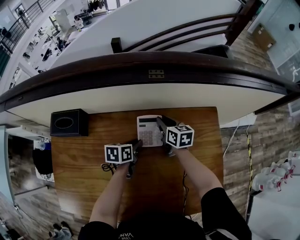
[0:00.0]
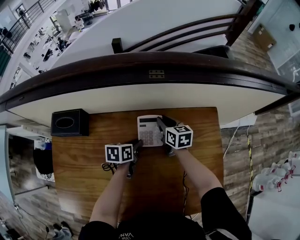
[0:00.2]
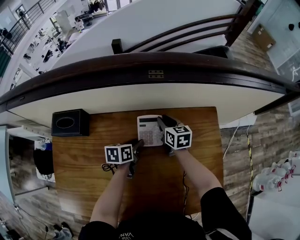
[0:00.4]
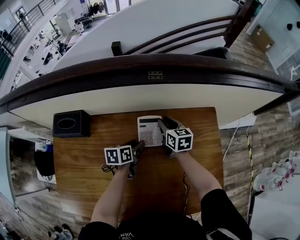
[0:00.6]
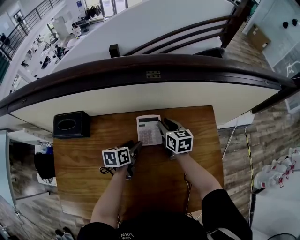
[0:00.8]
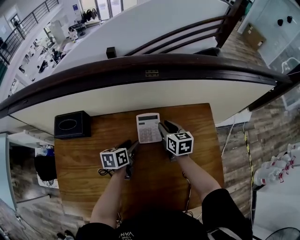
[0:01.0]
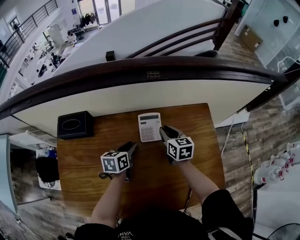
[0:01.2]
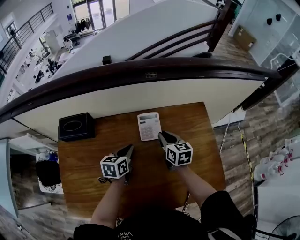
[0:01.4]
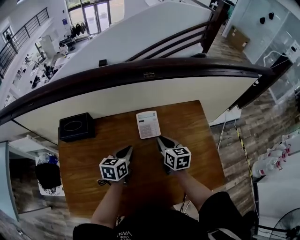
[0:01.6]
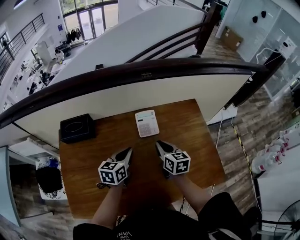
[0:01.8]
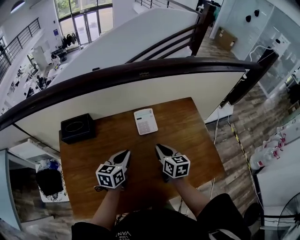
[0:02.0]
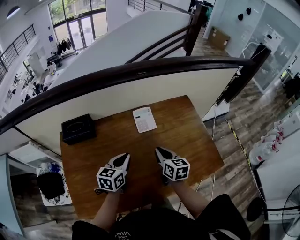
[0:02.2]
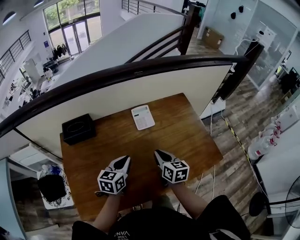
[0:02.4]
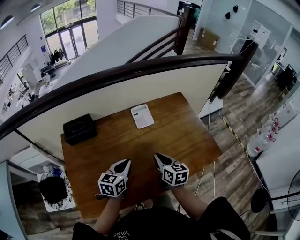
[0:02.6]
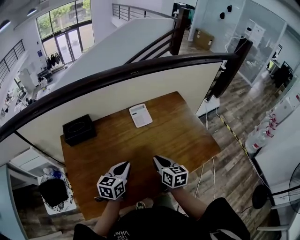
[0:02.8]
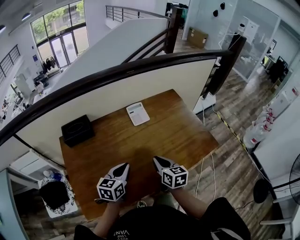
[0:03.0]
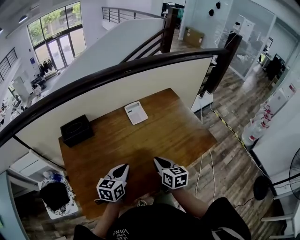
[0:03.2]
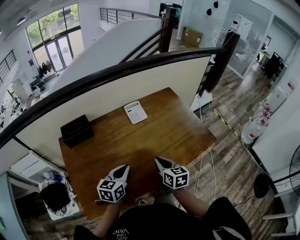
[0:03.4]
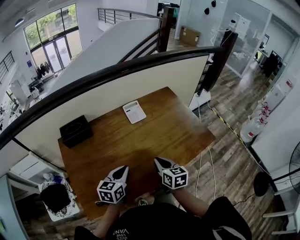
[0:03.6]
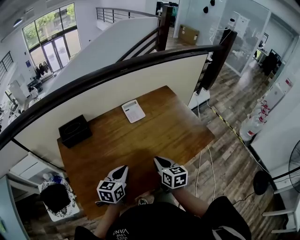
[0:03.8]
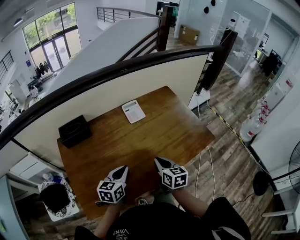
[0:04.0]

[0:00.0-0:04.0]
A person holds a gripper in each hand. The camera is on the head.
0.0 to 1.4 s: The right gripper shifts approximately 15 cm backward and upward, while the left gripper goes about 10 cm upward and backward, and opens, then closes again.
1.4 to 2.6 s: Both grippers travel together backward, roughly 20 cm. The left gripper turns by roughly 20 degrees.
2.6 to 4.0 s: Both grippers move backward, about 10 cm.

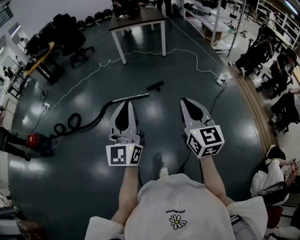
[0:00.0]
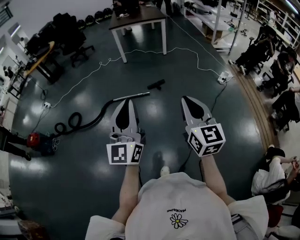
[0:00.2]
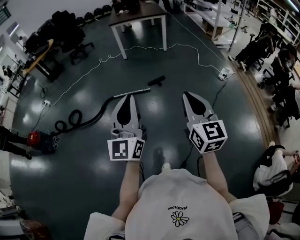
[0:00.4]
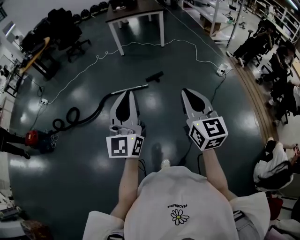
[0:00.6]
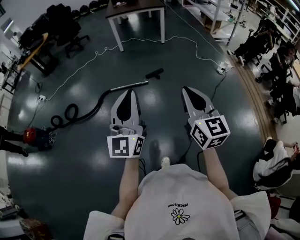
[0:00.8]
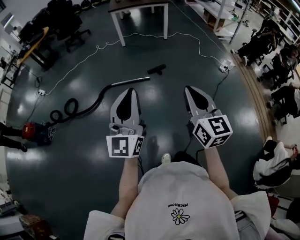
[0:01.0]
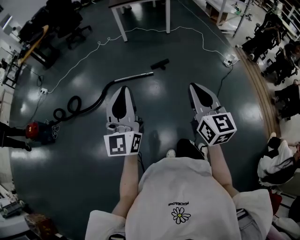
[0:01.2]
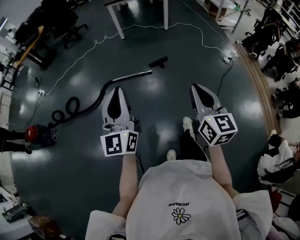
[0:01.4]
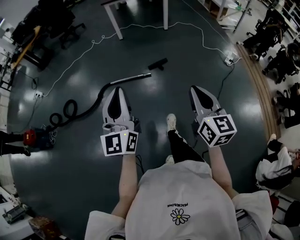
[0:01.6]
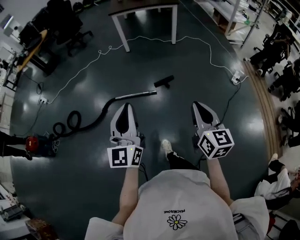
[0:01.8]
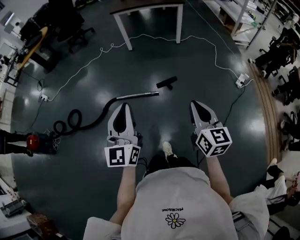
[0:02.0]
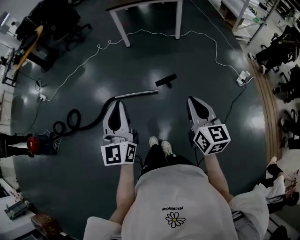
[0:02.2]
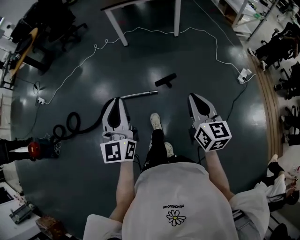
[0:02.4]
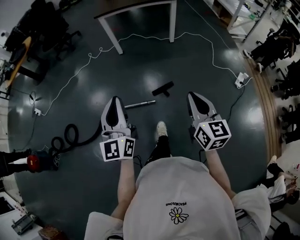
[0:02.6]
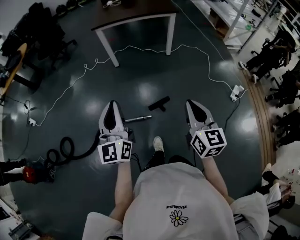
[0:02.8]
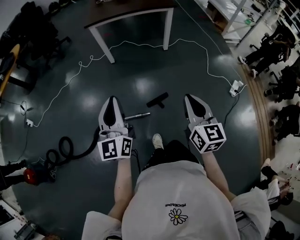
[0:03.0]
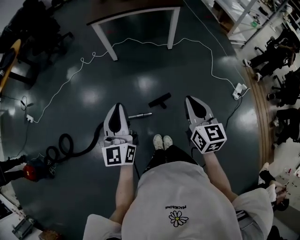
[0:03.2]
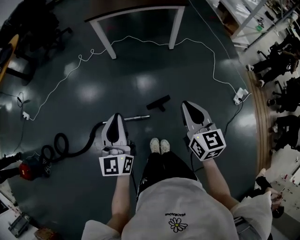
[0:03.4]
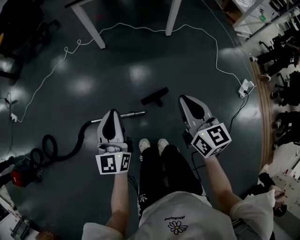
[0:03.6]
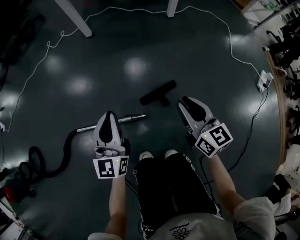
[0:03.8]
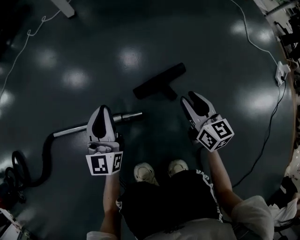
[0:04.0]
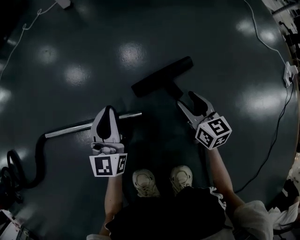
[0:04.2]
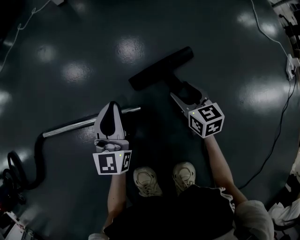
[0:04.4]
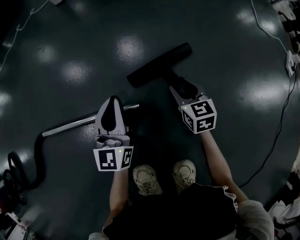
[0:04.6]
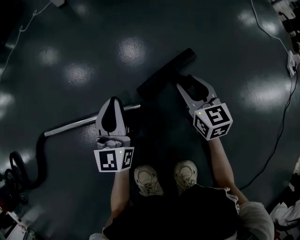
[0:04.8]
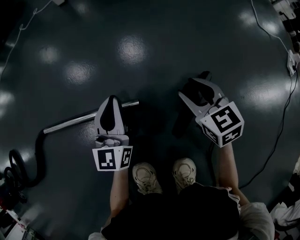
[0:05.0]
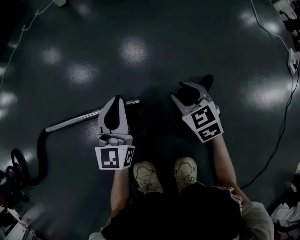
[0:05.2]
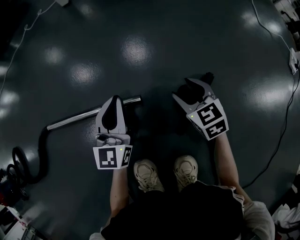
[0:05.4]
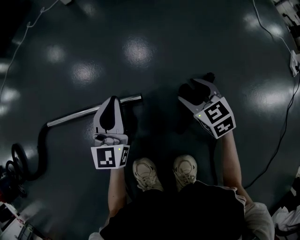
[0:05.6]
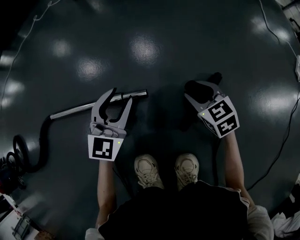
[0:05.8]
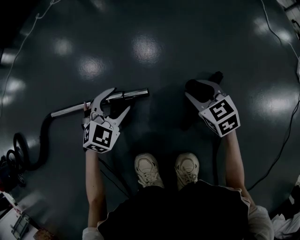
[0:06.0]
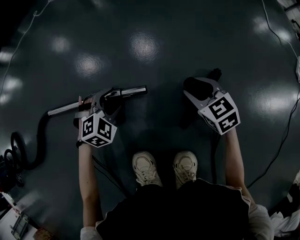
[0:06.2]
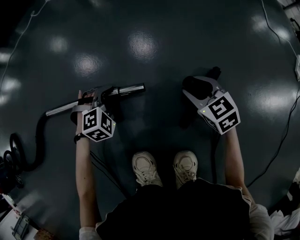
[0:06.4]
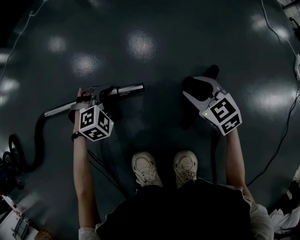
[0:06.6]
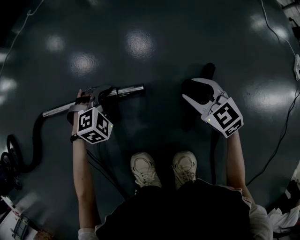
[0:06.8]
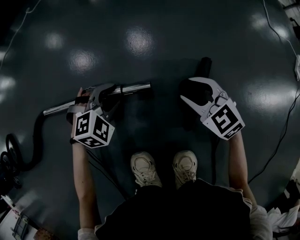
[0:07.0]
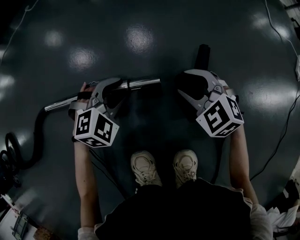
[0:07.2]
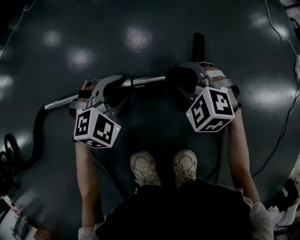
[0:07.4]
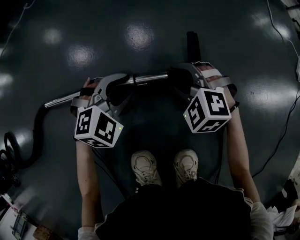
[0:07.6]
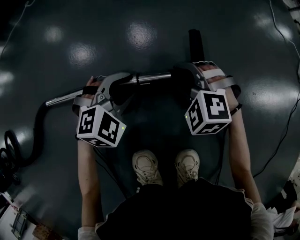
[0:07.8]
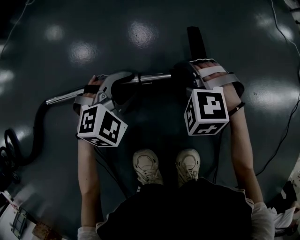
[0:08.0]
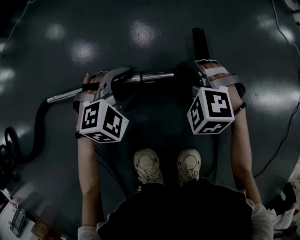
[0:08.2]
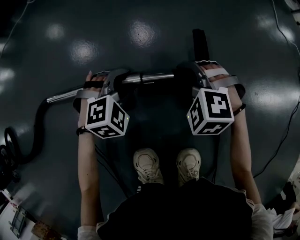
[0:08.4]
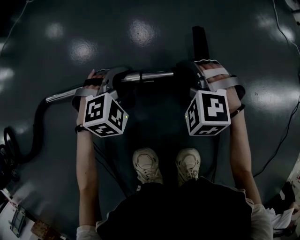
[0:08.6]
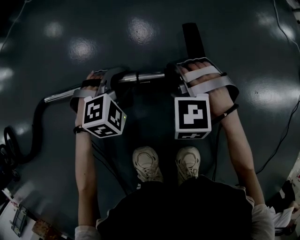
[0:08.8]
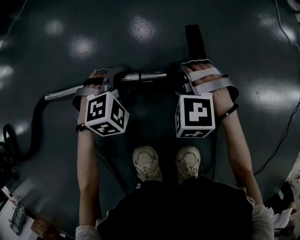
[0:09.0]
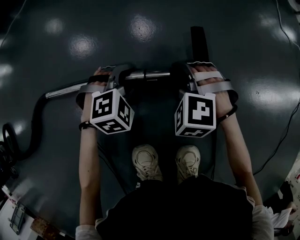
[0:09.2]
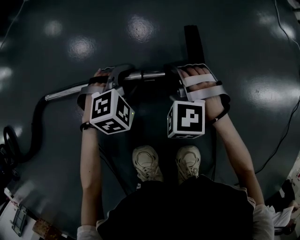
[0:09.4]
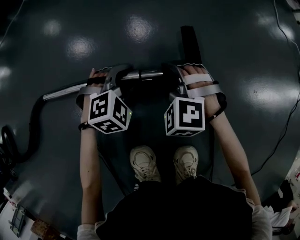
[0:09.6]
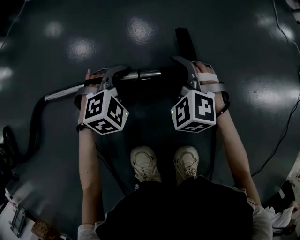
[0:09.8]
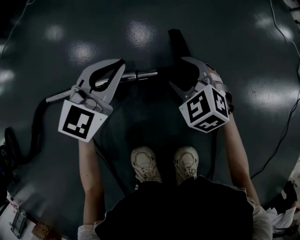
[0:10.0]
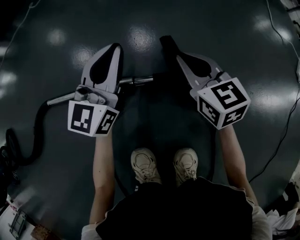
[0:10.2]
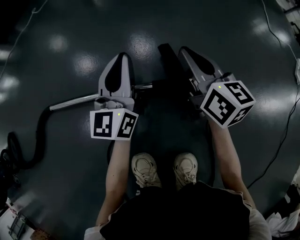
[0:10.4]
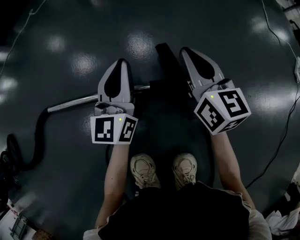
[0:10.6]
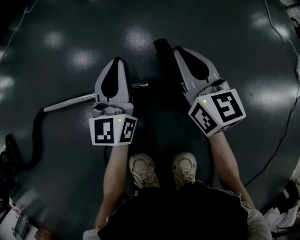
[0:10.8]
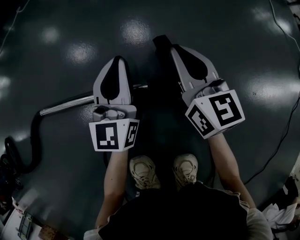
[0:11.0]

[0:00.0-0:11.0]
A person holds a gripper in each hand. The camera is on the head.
0.0 to 1.6 s: The left gripper is displaced forward, downward and to the left by roughly 20 cm. Meanwhile the right gripper moves forward and downward, about 20 cm.
1.6 to 3.2 s: The pair of grippers is taken forward, about 60 cm.
3.2 to 4.8 s: The grippers both shift downward by about 90 cm. The right gripper opens its fingers.
4.8 to 6.2 s: The right gripper goes some 5 cm backward, and changes its angle by approximately 30 degrees; the left gripper moves downward, some 15 cm, angles its fingers downward, by about 60 degrees, and opens its fingers.
6.2 to 7.8 s: The right gripper shifts approximately 5 cm to the left, and rolls counterclockwise, seen from behind, by about 50 degrees; the left gripper moves to the right and upward, approximately 10 cm, and closes up.
7.8 to 9.4 s: The left gripper heads downward, covering approximately 5 cm.
9.4 to 11.0 s: The left gripper shifts approximately 15 cm upward and forward, tips its fingers upward by approximately 60 degrees, and closes its fingers. Meanwhile the right gripper heads upward, forward and to the right, covering roughly 15 cm, rolls clockwise, seen from behind, by about 80 degrees, and closes up.

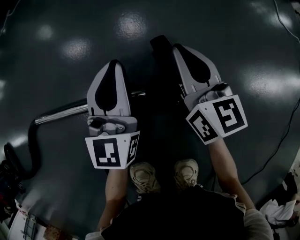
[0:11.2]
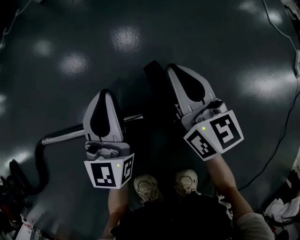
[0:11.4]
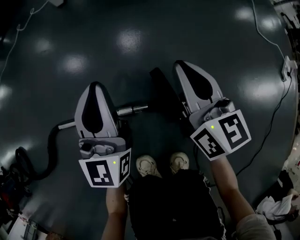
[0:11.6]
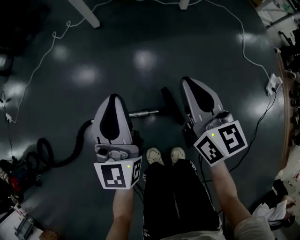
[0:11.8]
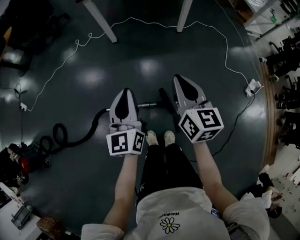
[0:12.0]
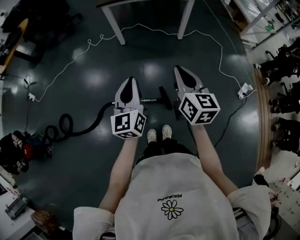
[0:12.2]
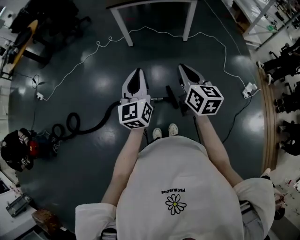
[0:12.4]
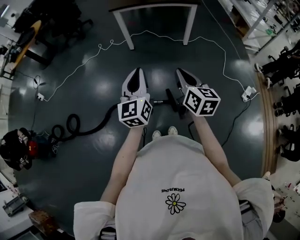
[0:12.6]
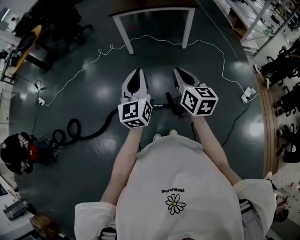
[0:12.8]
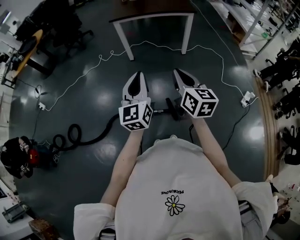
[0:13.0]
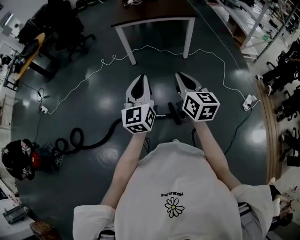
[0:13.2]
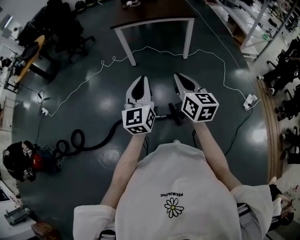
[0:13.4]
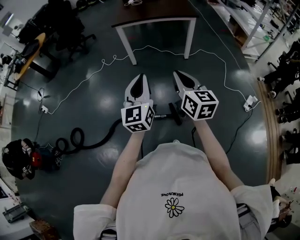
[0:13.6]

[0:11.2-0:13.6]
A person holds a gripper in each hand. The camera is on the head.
11.2 to 12.4 s: Both grippers travel together upward, some 90 cm.
12.4 to 13.6 s: The grippers make only small movements.

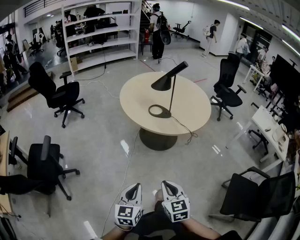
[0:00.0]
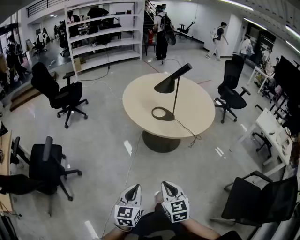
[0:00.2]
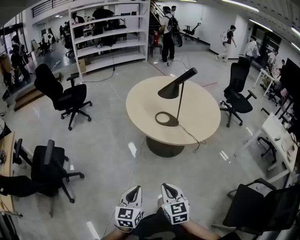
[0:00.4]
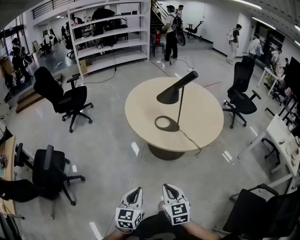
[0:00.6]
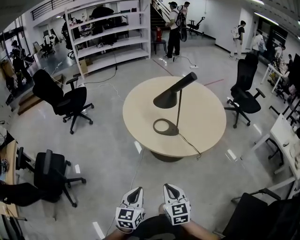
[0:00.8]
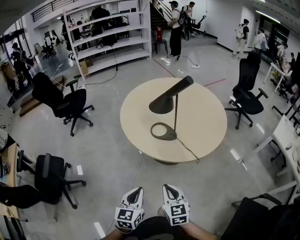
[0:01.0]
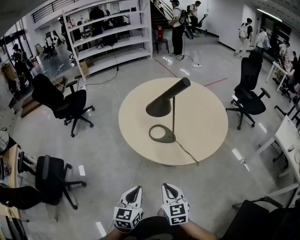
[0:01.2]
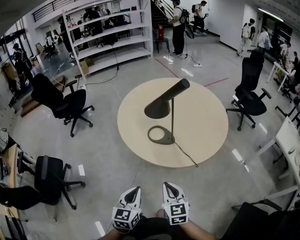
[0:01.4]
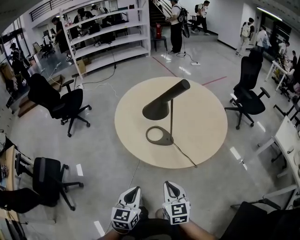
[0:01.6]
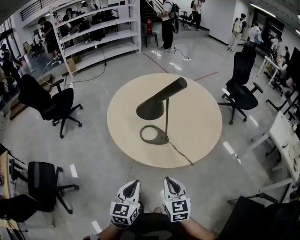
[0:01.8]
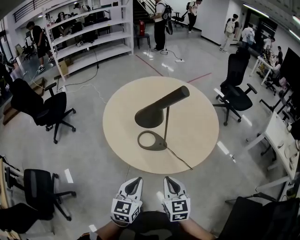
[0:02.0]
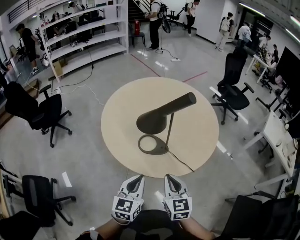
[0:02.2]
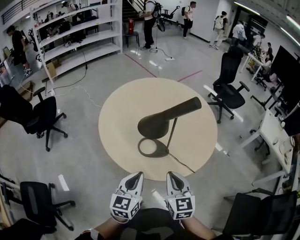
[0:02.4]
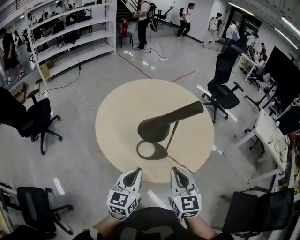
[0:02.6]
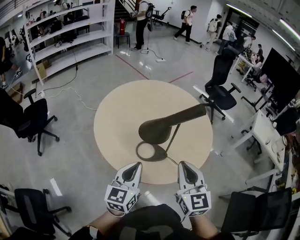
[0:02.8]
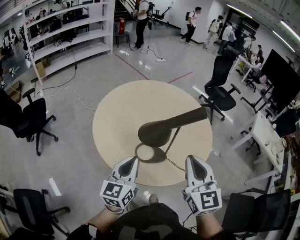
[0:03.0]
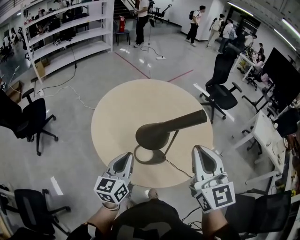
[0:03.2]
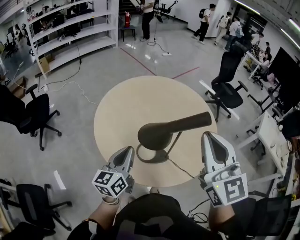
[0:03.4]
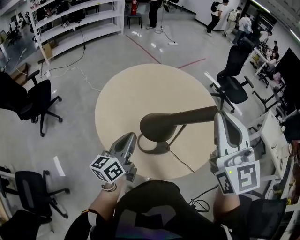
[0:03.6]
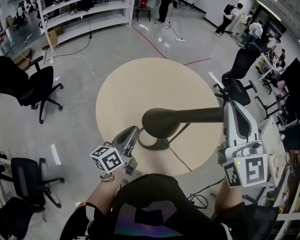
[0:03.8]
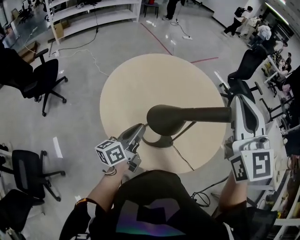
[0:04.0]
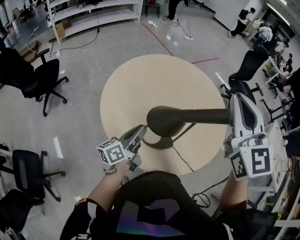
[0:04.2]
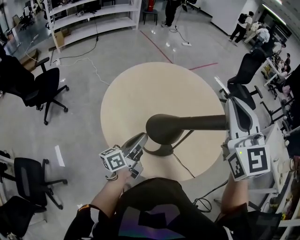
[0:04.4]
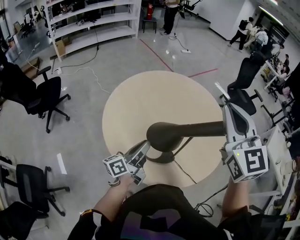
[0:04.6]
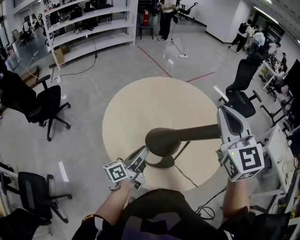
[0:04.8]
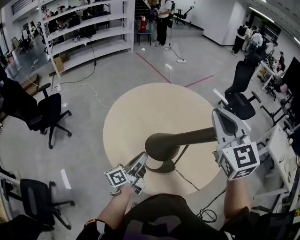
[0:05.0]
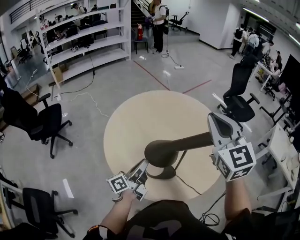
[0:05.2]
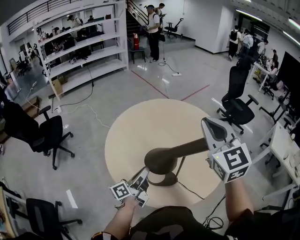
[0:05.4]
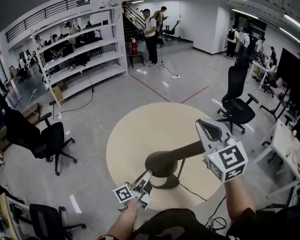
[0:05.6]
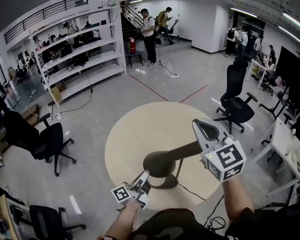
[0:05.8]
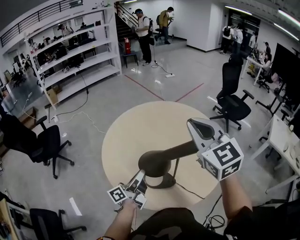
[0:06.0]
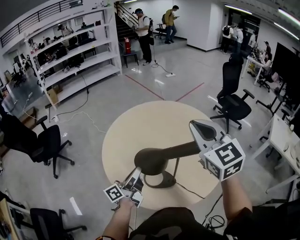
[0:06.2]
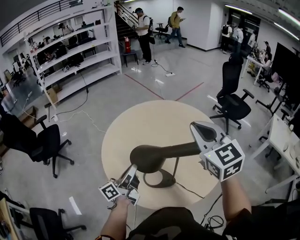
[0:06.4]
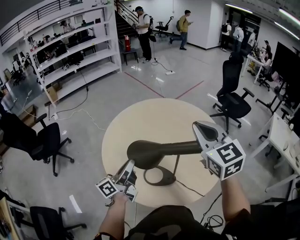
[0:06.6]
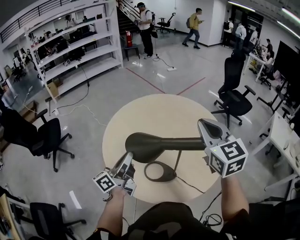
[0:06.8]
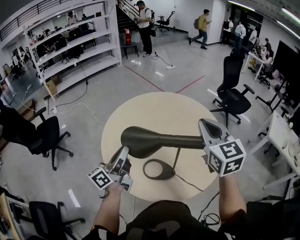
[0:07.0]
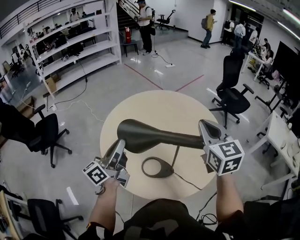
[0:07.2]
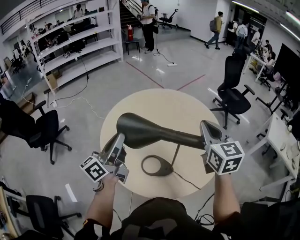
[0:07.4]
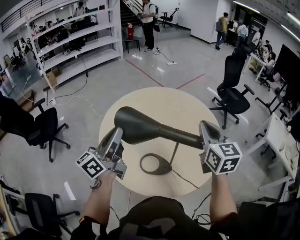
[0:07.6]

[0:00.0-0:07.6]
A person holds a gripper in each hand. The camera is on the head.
0.0 to 1.6 s: Both grippers move forward and to the right, roughly 40 cm.
1.6 to 3.0 s: The right gripper goes about 30 cm forward, upward and to the left, and changes its angle by some 30 degrees. Meanwhile the left gripper is displaced forward and to the left by about 35 cm, and changes its angle by roughly 30 degrees.
3.0 to 4.6 s: The right gripper heads forward and upward, covering about 20 cm. The left gripper shifts roughly 15 cm forward and downward, and rolls counterclockwise, seen from behind, by roughly 40 degrees.
4.6 to 6.0 s: The grippers move only a little.
6.0 to 7.6 s: The left gripper is displaced upward by some 20 cm, and rotates some 30 degrees, while the right gripper heads downward and to the right, covering about 10 cm, and turns by roughly 20 degrees.
